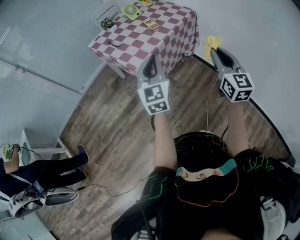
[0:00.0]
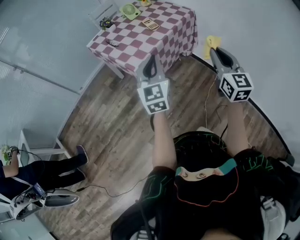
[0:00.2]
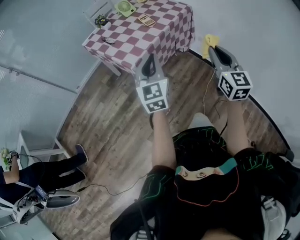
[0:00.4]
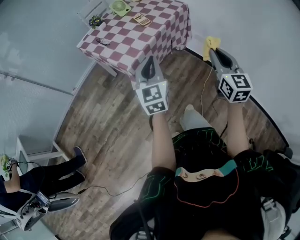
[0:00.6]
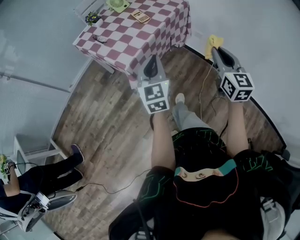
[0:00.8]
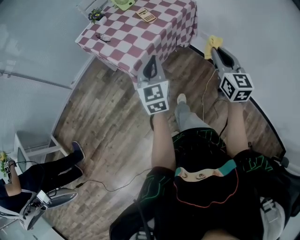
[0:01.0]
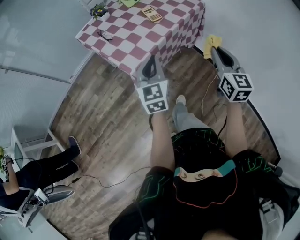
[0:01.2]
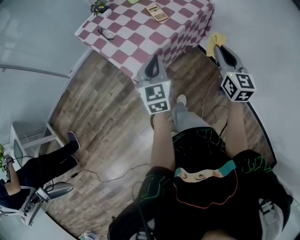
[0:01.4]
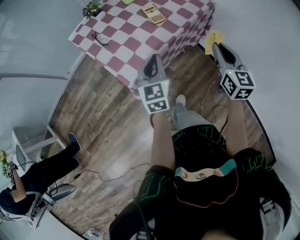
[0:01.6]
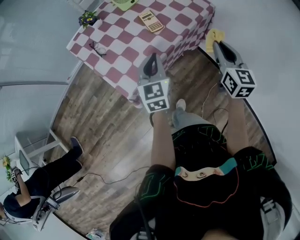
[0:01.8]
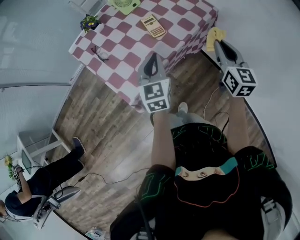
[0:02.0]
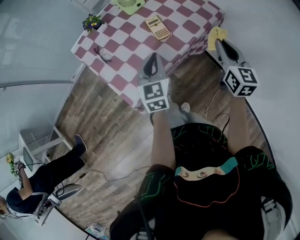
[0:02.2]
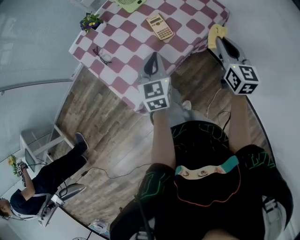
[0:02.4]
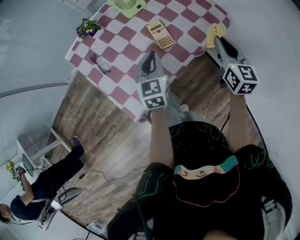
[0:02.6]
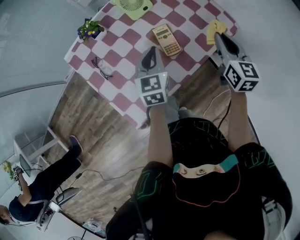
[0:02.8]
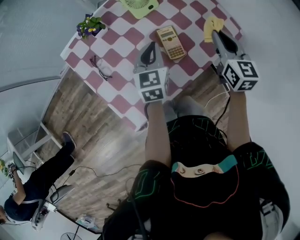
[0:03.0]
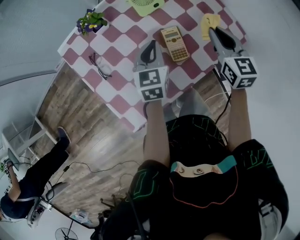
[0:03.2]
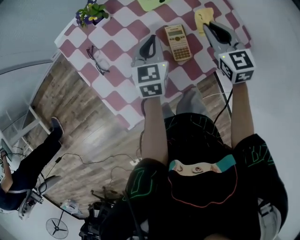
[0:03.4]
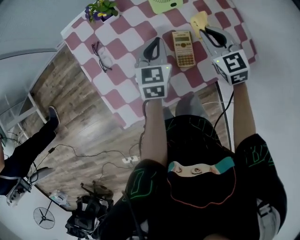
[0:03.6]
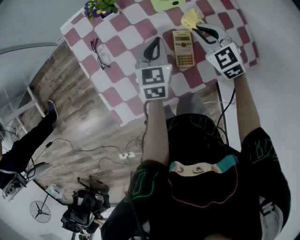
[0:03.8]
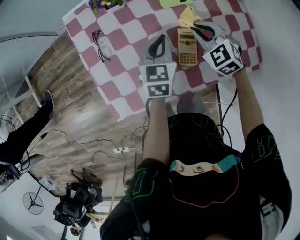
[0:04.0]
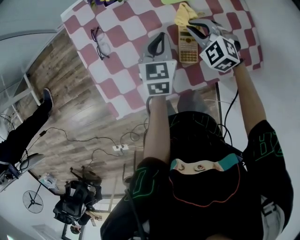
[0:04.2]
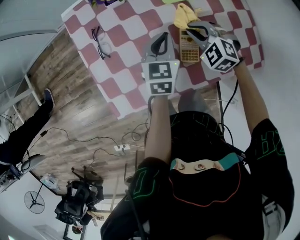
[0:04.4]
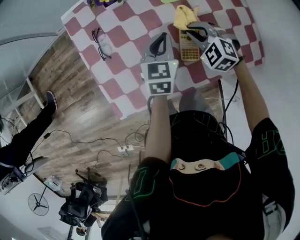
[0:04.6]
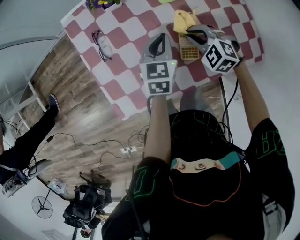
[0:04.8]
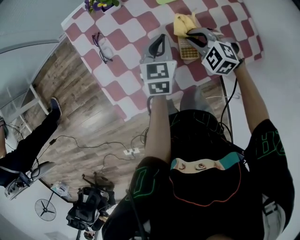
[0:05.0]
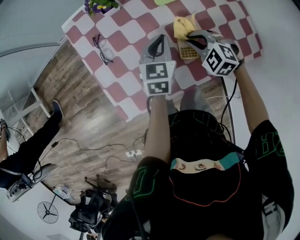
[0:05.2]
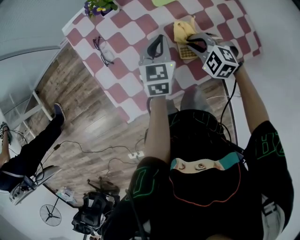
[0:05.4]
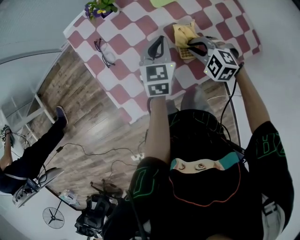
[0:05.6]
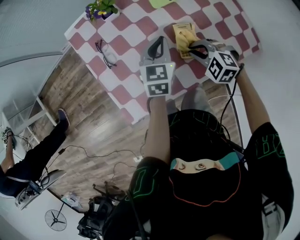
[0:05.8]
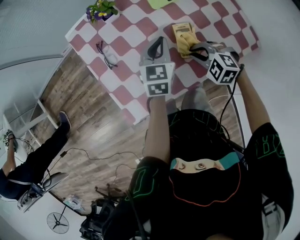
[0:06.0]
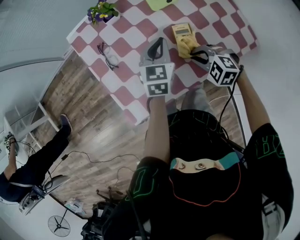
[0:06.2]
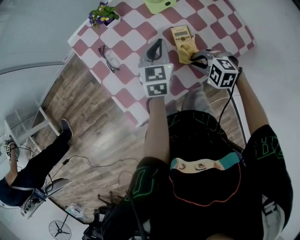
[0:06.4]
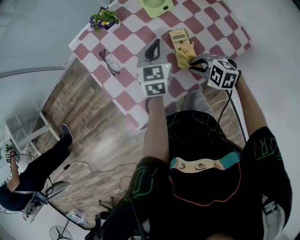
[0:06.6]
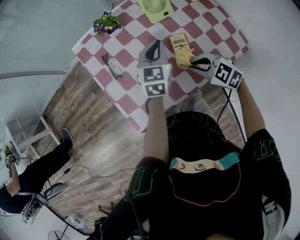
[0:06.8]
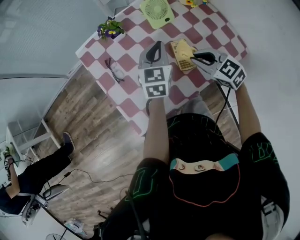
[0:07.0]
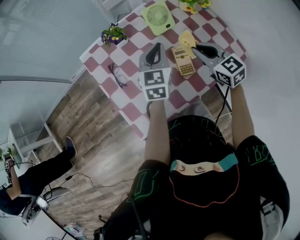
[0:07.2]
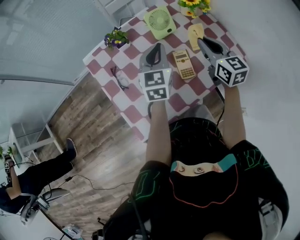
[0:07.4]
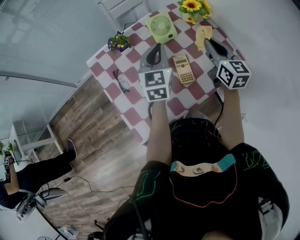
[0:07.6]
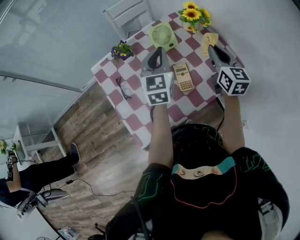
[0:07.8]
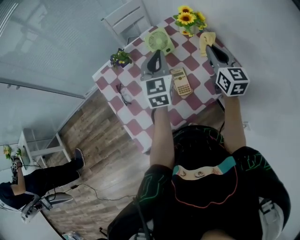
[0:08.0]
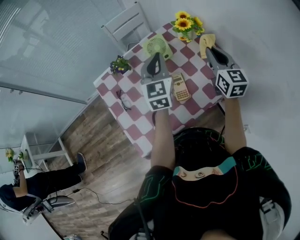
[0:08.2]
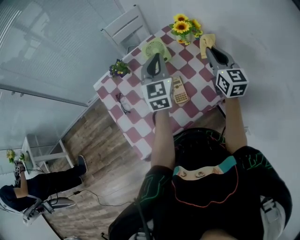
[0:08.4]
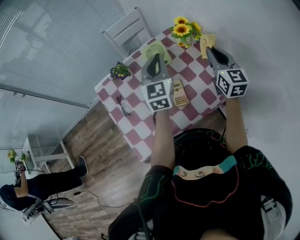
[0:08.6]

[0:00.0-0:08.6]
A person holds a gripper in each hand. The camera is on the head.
0:00.0 to 0:01.4: The right gripper travels forward by approximately 20 cm, while the left gripper travels forward and downward by roughly 20 cm.
0:01.4 to 0:02.8: The two grippers go about 30 cm forward.
0:02.8 to 0:04.4: The left gripper changes place by some 10 cm. The right gripper shifts by about 25 cm, and tilts its fingers some 30 degrees downward.
0:04.4 to 0:05.8: The right gripper travels backward by some 10 cm.
0:05.8 to 0:07.2: The right gripper goes roughly 15 cm upward, and angles its fingers upward, by some 30 degrees; the left gripper moves upward, approximately 10 cm.
0:07.2 to 0:08.6: The left gripper heads upward and to the right, covering roughly 15 cm, while the right gripper goes roughly 20 cm to the right, upward and forward, and changes its angle by some 30 degrees.

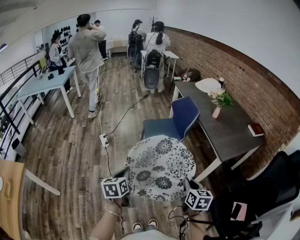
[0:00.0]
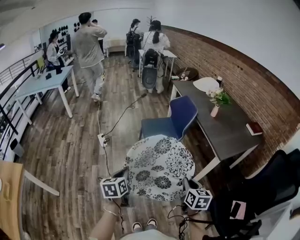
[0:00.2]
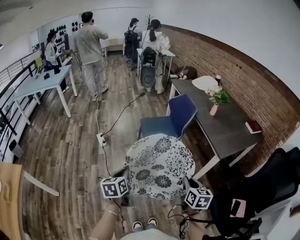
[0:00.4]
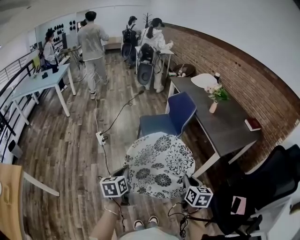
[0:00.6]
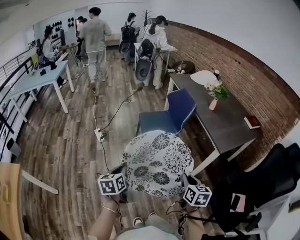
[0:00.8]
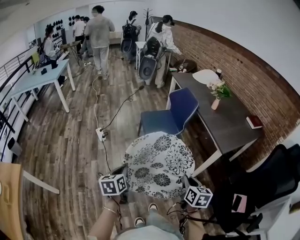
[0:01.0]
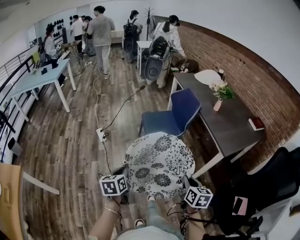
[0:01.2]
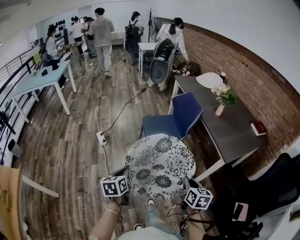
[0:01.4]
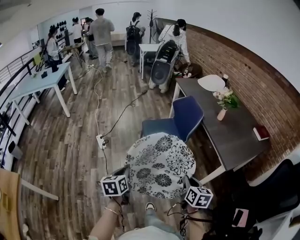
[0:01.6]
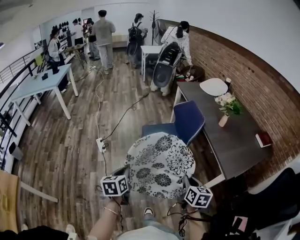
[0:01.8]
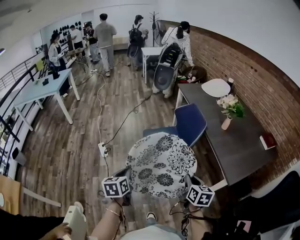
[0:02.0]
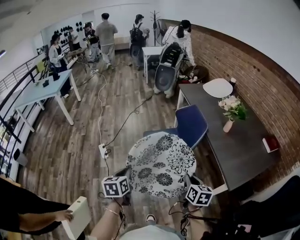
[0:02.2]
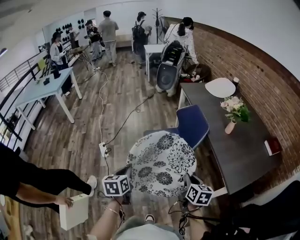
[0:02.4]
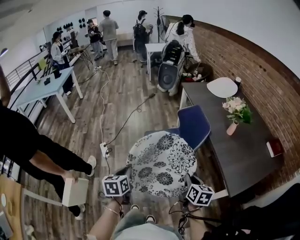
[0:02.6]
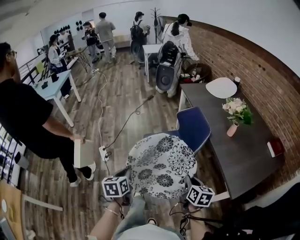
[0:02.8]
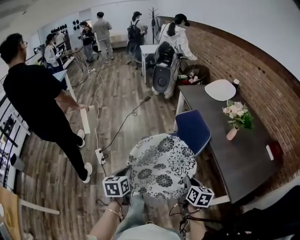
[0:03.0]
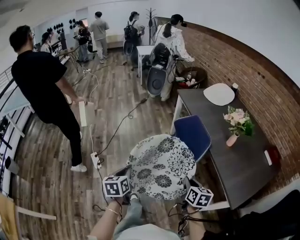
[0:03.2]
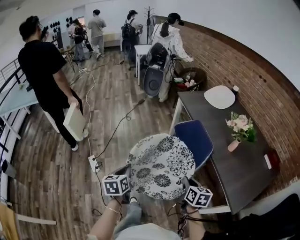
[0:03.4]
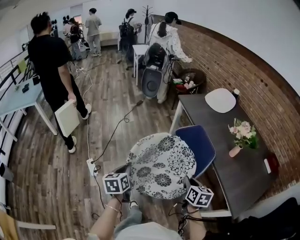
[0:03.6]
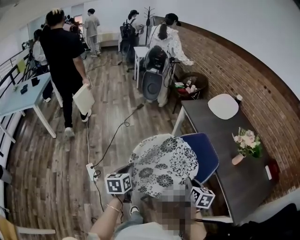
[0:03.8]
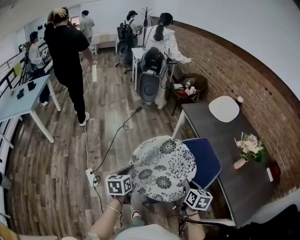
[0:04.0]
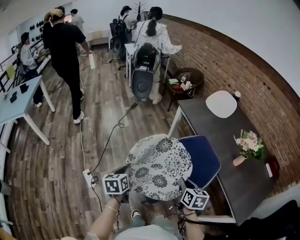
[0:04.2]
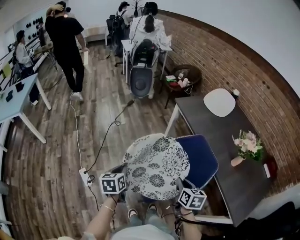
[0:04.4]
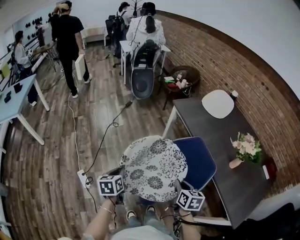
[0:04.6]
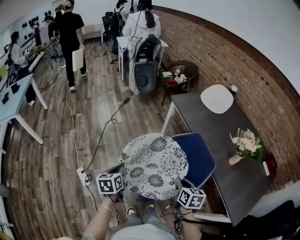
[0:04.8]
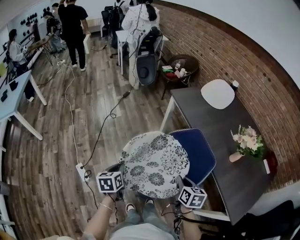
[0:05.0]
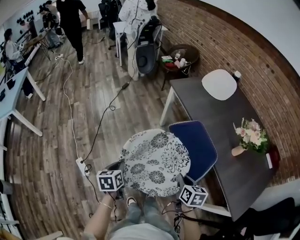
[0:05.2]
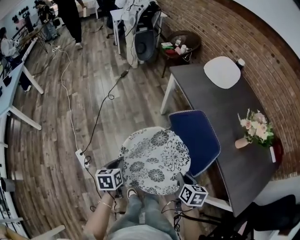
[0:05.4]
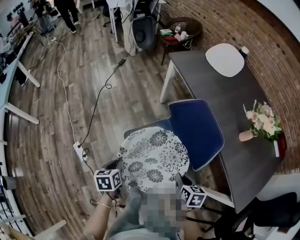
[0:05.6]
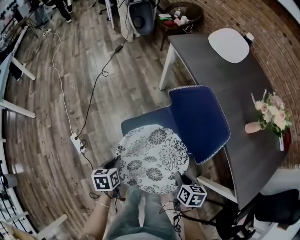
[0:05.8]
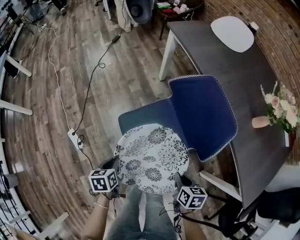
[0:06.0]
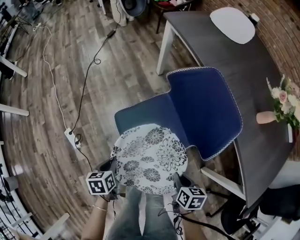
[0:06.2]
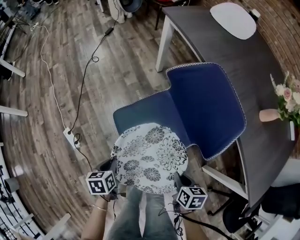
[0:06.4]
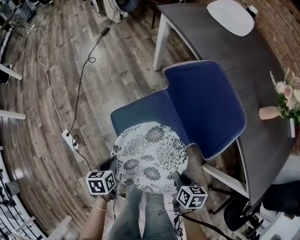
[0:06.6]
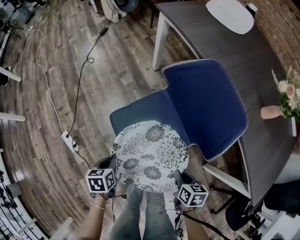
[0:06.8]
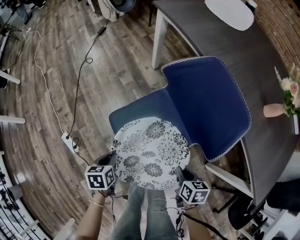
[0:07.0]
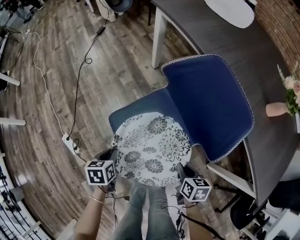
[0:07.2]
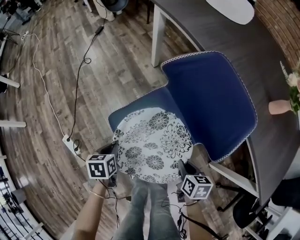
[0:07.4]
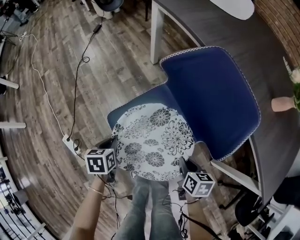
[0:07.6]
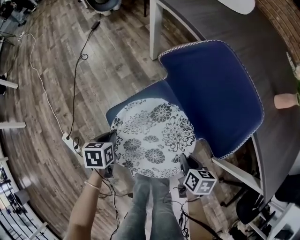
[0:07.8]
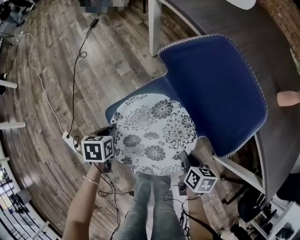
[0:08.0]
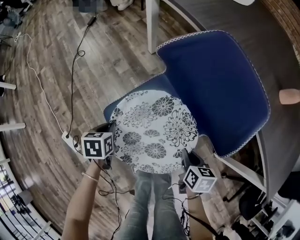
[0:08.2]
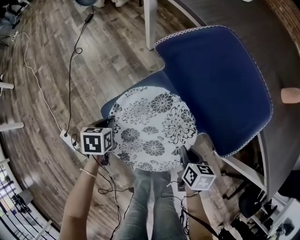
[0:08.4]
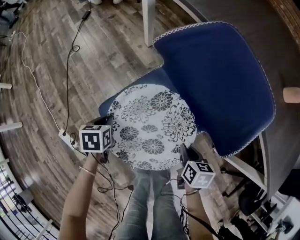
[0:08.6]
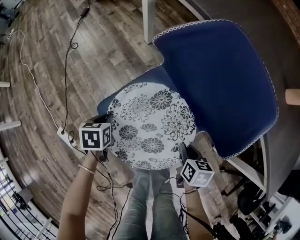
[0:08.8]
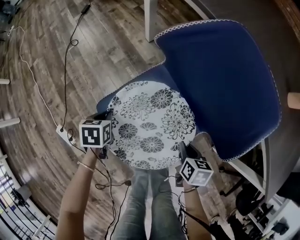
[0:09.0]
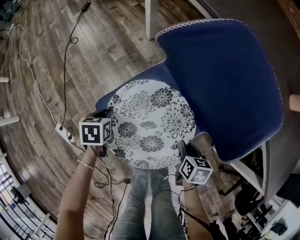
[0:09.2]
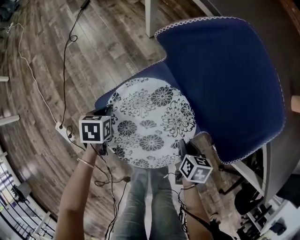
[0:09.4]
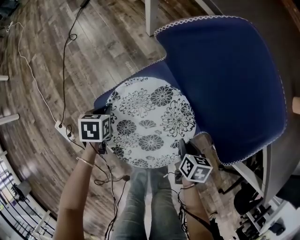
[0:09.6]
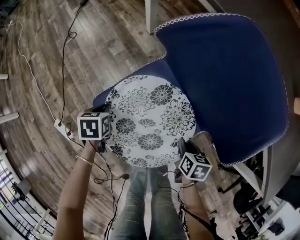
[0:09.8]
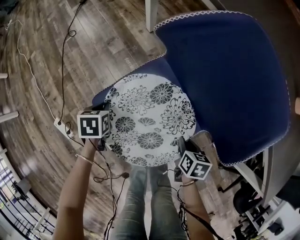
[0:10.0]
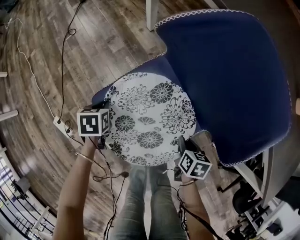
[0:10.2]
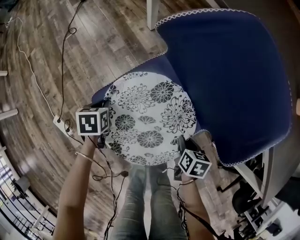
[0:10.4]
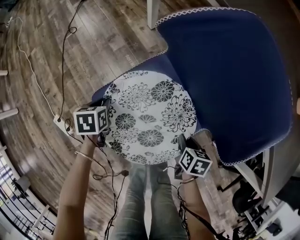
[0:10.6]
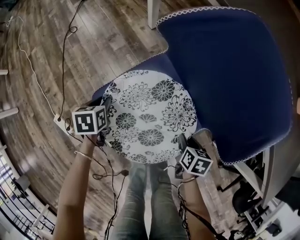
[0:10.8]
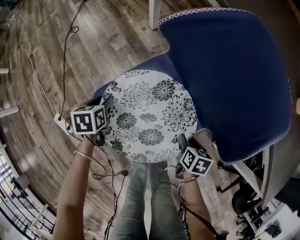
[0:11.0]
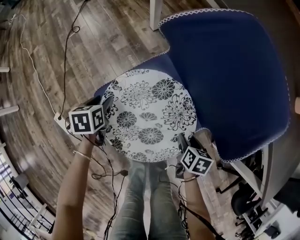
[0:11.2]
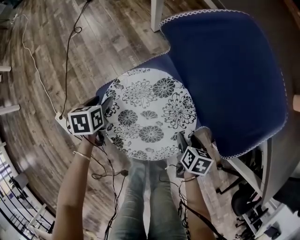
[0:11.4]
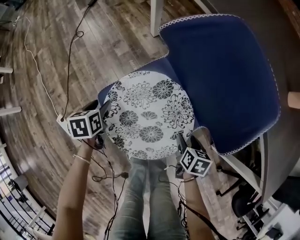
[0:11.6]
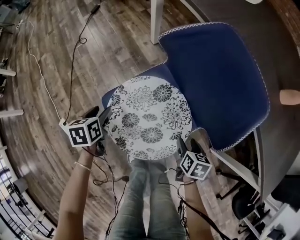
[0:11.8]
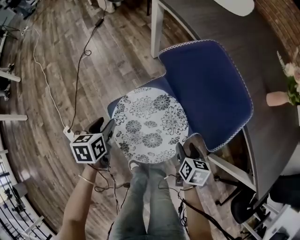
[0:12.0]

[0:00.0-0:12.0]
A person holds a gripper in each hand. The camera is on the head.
0:00.0 to 0:01.6: The two grippers go about 15 cm forward.
0:01.6 to 0:03.0: Both grippers travel together forward, approximately 25 cm.
0:03.0 to 0:04.4: The right gripper moves forward and to the left, roughly 30 cm; the left gripper moves forward, roughly 35 cm.
0:04.4 to 0:06.0: The grippers both shift downward by some 20 cm. The left gripper rotates about 20 degrees; the right gripper turns by roughly 20 degrees.
0:06.0 to 0:07.6: The left gripper travels forward and downward by some 15 cm, while the right gripper moves downward and forward, approximately 15 cm.
0:07.6 to 0:09.0: The left gripper shifts some 10 cm forward and downward; the right gripper travels downward by some 5 cm.
0:09.0 to 0:10.4: The grippers stay close to where they were, moving slightly.
0:10.4 to 0:12.0: Both grippers move upward, roughly 15 cm. The left gripper rotates some 20 degrees, and opens up; the right gripper opens.

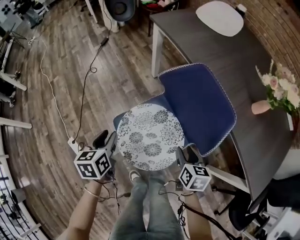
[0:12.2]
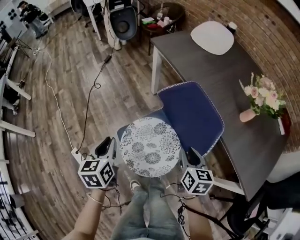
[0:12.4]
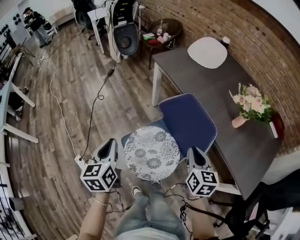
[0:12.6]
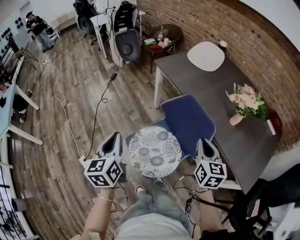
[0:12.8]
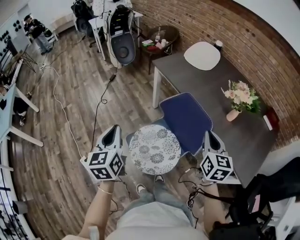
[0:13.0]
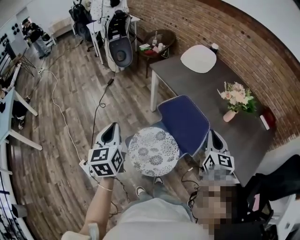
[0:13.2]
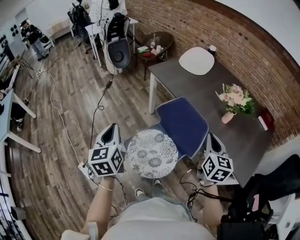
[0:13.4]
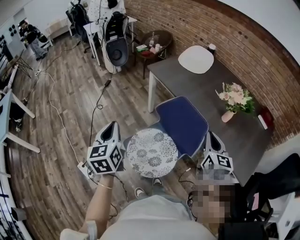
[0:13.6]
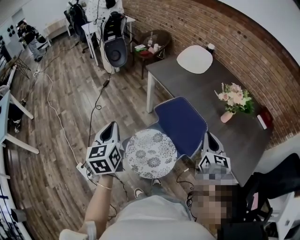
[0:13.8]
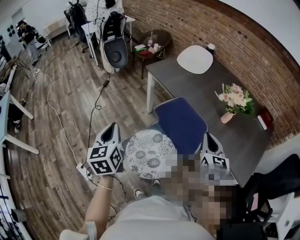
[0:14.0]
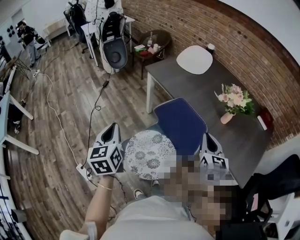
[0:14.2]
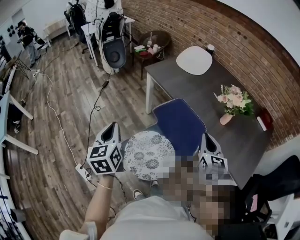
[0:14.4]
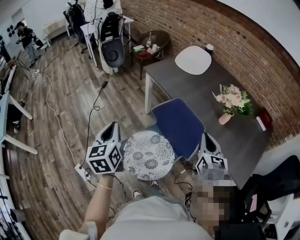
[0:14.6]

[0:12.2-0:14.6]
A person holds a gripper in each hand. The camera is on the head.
0:12.2 to 0:13.4: Both grippers move upward, roughly 35 cm. The left gripper swivels some 30 degrees, and closes; the right gripper rotates roughly 30 degrees, and closes up.
0:13.4 to 0:14.6: The grippers stay close to where they were, moving slightly.
